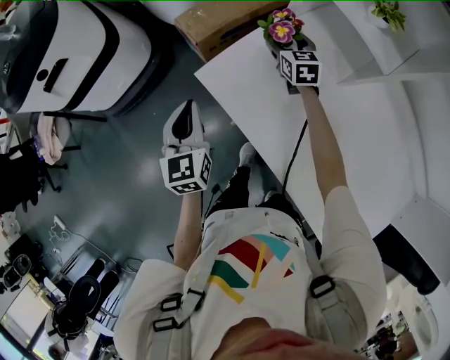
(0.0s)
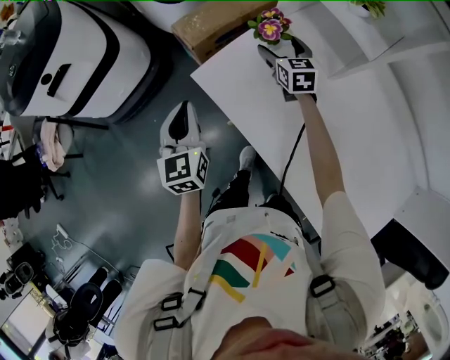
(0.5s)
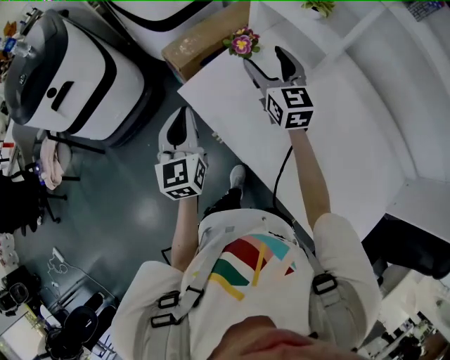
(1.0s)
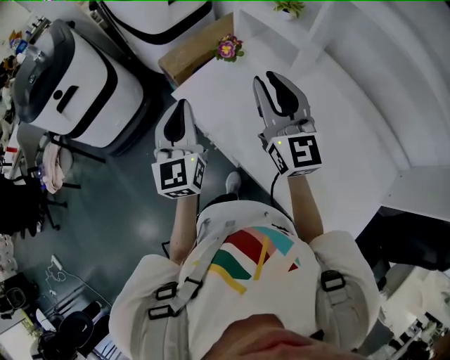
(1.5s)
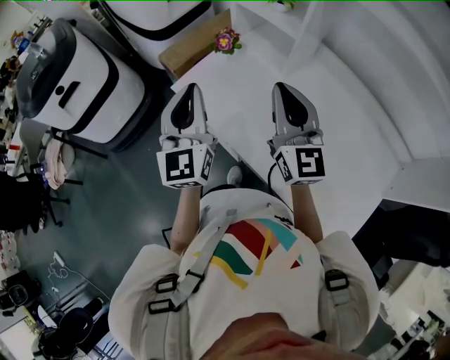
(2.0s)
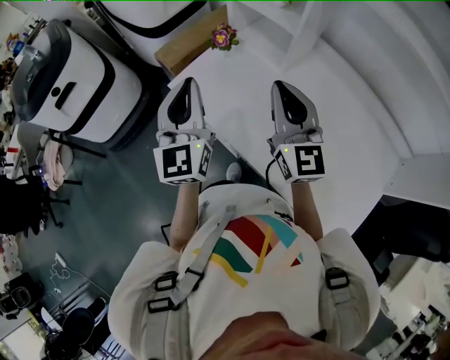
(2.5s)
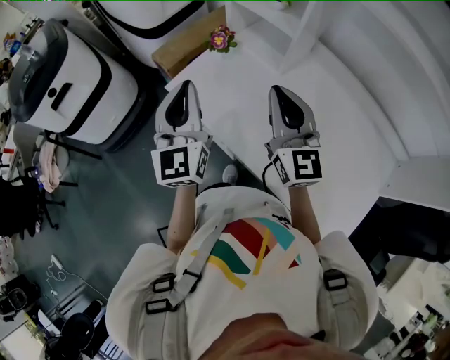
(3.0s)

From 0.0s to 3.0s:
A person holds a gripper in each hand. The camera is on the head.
From 0.0s to 1.5s: The left gripper heads upward, backward and to the right, covering approximately 20 cm, and swivels roughly 20 degrees. The right gripper heads upward and backward, covering approximately 40 cm, angles its fingers upward, by about 40 degrees, and closes.
From 1.5s to 3.0s: The right gripper shifts by about 5 cm.

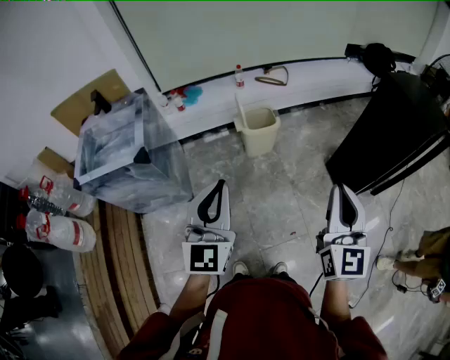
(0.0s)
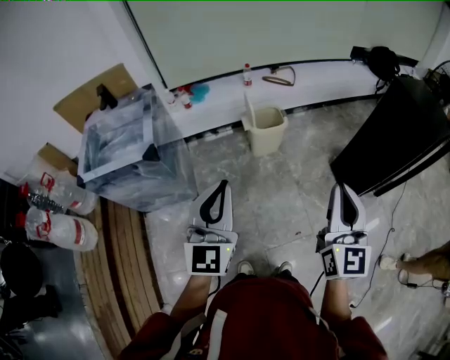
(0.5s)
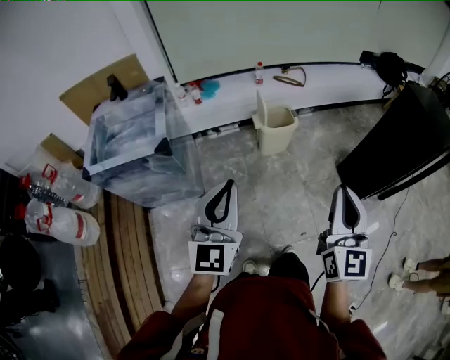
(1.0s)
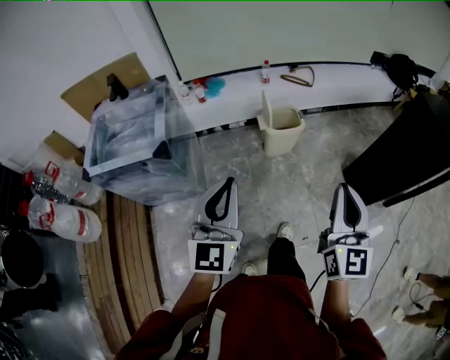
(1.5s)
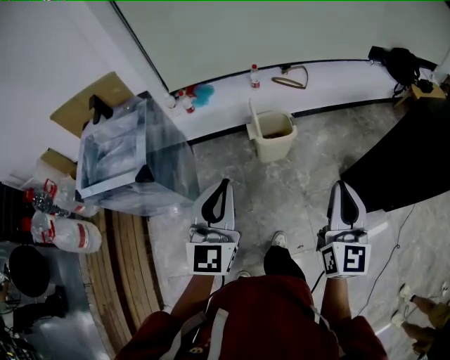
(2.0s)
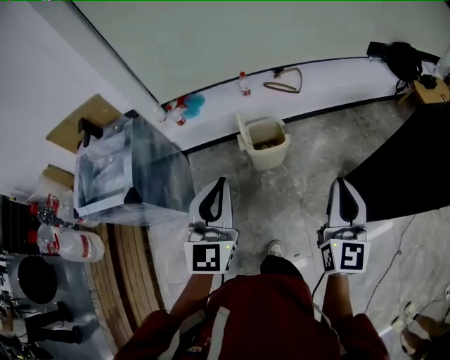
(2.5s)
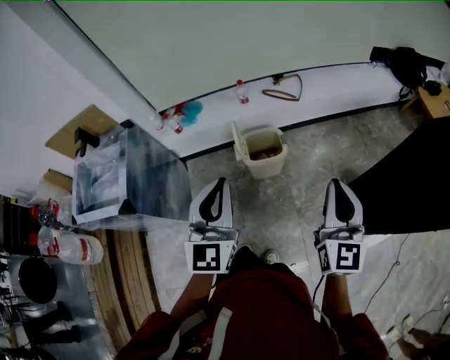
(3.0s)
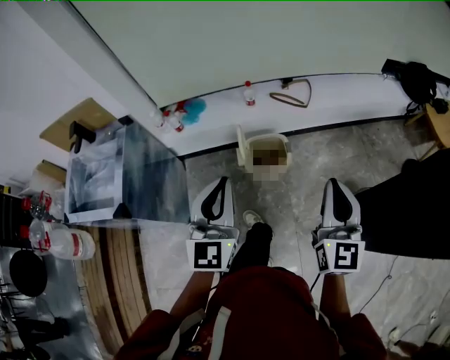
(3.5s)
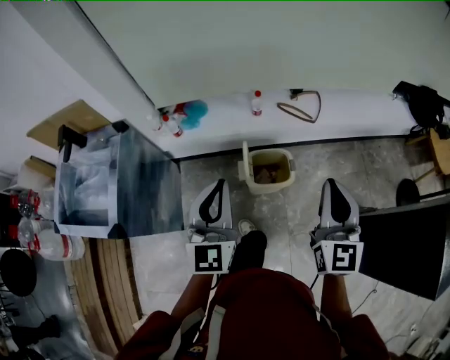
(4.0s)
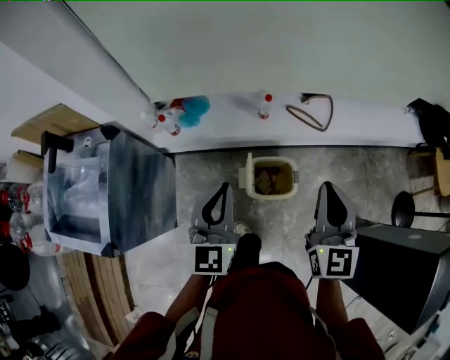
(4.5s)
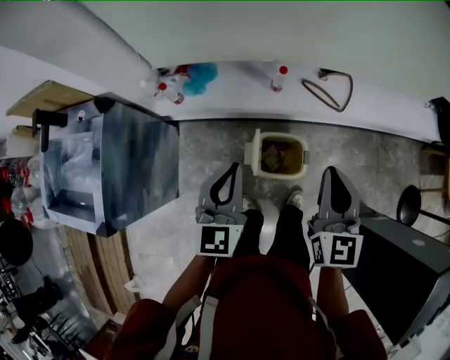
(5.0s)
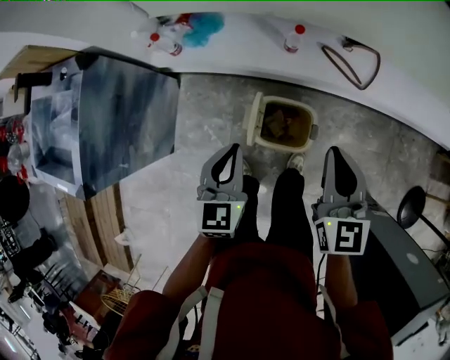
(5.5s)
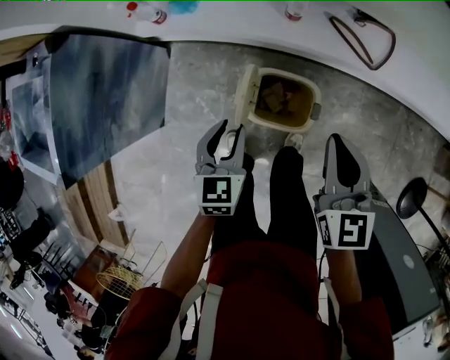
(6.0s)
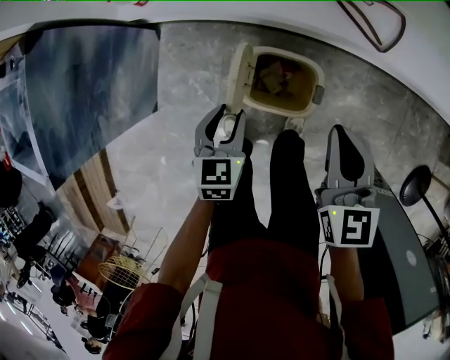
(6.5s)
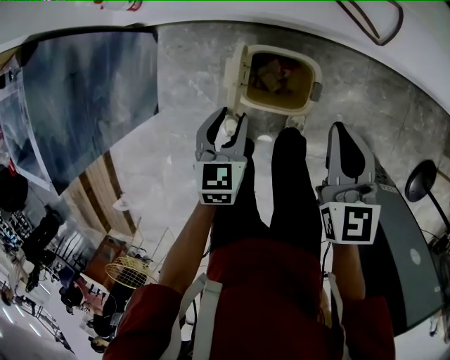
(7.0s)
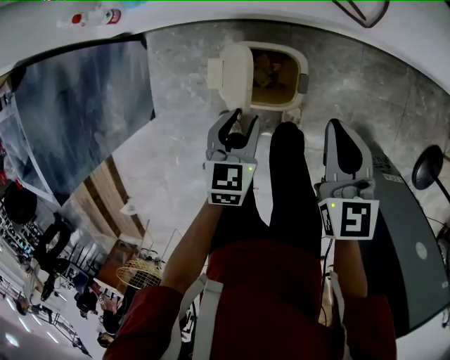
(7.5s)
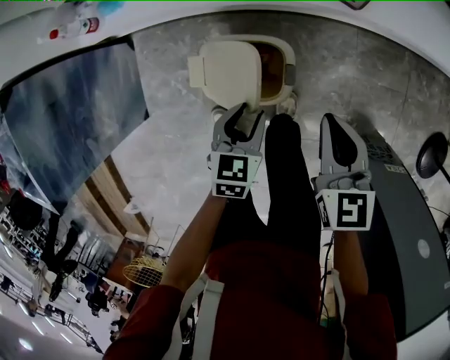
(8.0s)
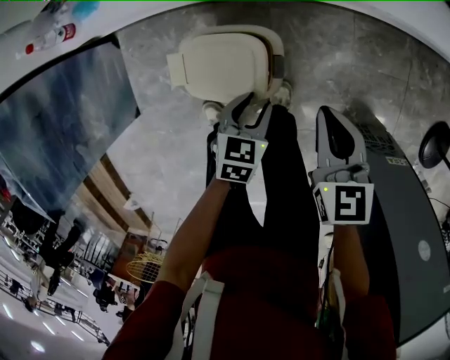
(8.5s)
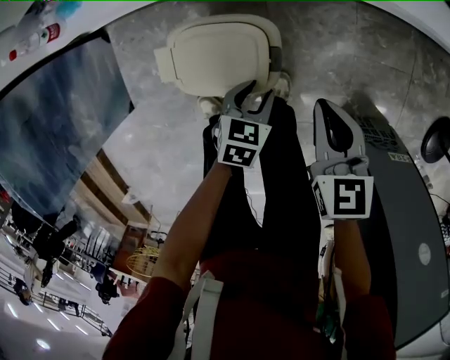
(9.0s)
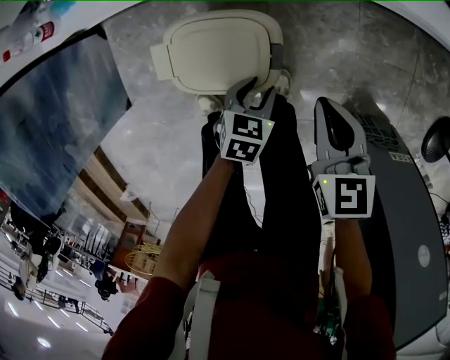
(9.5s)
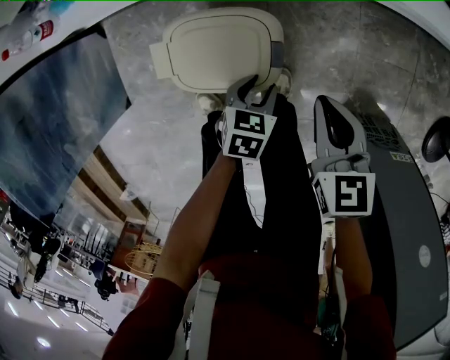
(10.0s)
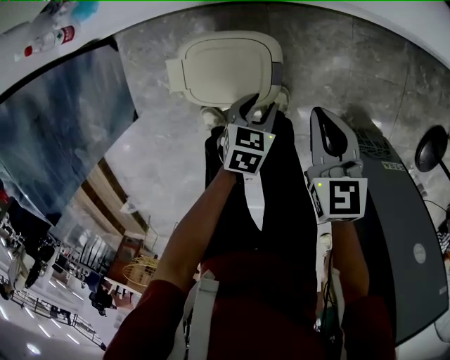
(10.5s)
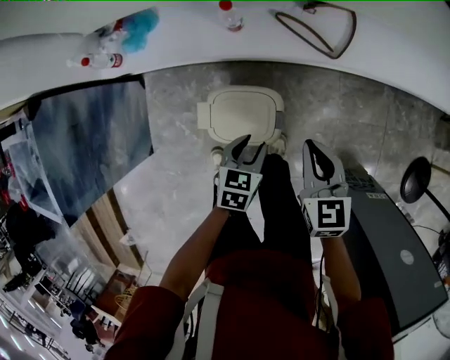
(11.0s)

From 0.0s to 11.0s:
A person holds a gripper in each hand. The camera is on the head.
From 0.0s to 2.0s: The grippers both shift forward by roughly 15 cm.
From 2.0s to 3.5s: The two grippers go about 20 cm forward.
From 3.5s to 5.5s: The right gripper goes about 40 cm forward and downward, and changes its angle by some 30 degrees; the left gripper heads downward and forward, covering about 35 cm, and turns by approximately 30 degrees.
From 5.5s to 7.5s: Both grippers move downward and to the right, about 20 cm. The left gripper turns by some 20 degrees, and opens up.
From 7.5s to 9.0s: The two grippers go approximately 20 cm downward and to the right. The left gripper swivels roughly 20 degrees.
From 9.0s to 11.0s: The grippers both shift upward by some 15 cm.

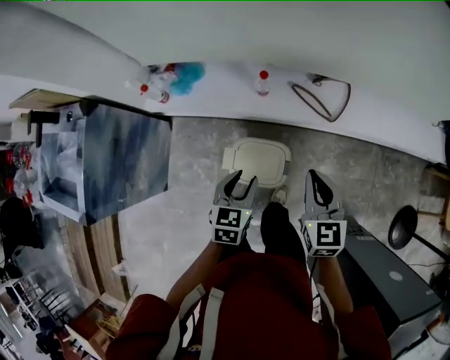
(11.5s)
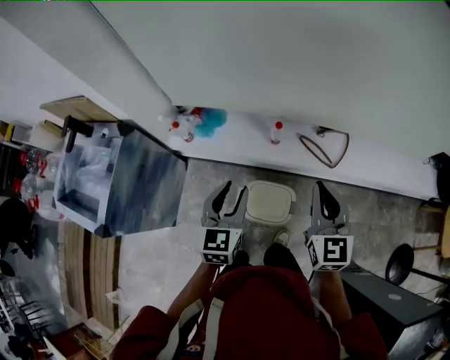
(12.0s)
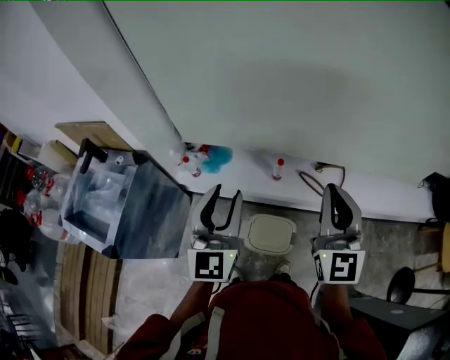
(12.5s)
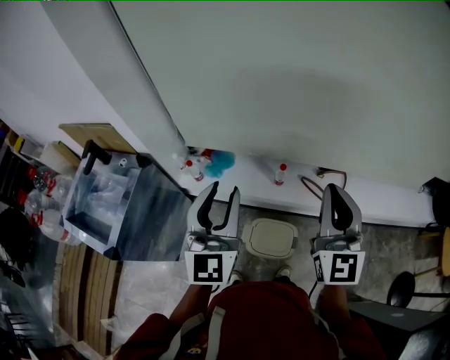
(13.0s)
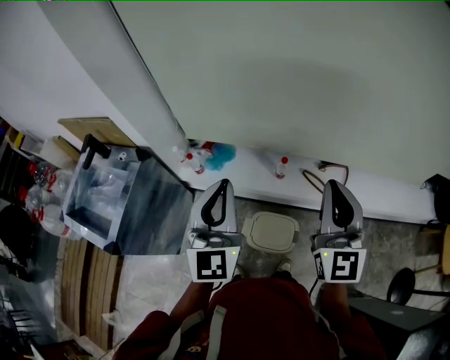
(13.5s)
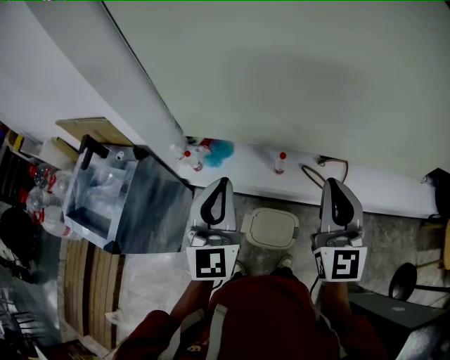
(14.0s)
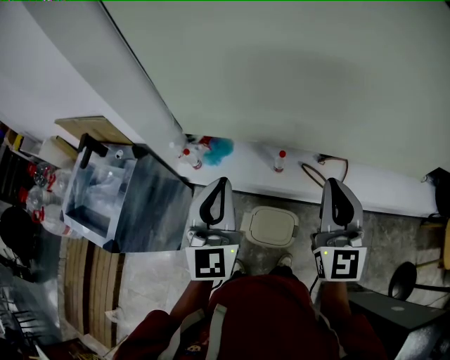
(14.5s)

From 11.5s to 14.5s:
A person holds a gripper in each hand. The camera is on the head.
From 11.5s to 13.0s: Both grippers move upward, roughly 35 cm. The right gripper tilts its fingers roughly 40 degrees upward. Meanwhile the left gripper points its fingers about 50 degrees further upward.
From 13.0s to 14.5s: The left gripper closes up.

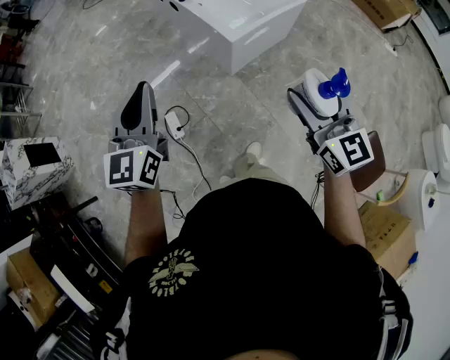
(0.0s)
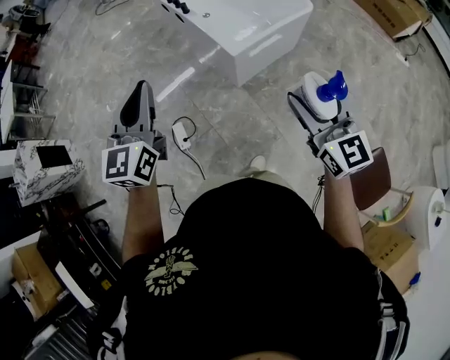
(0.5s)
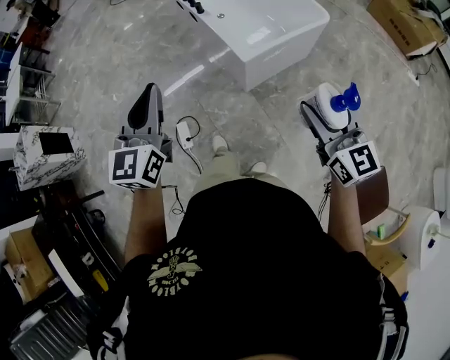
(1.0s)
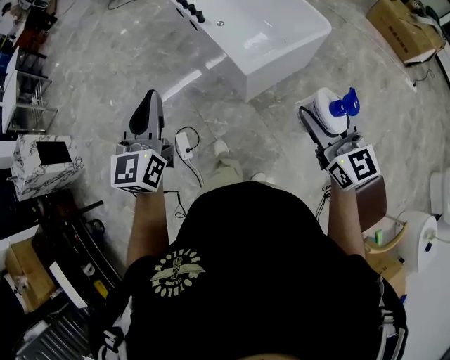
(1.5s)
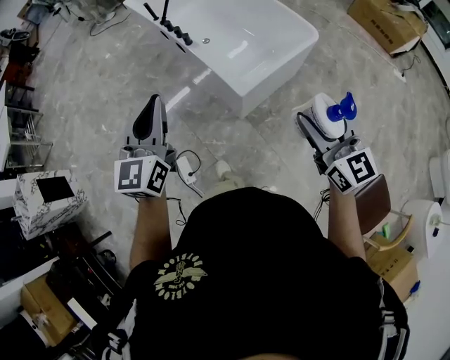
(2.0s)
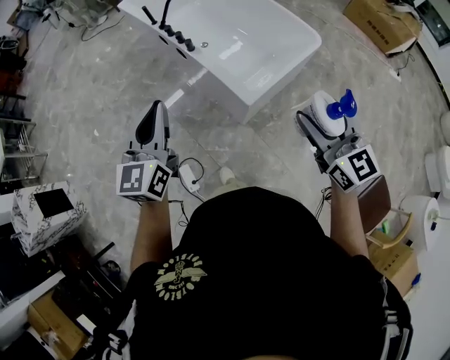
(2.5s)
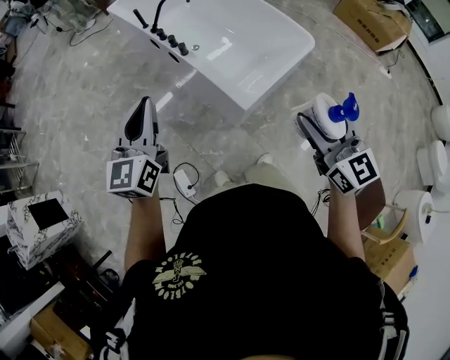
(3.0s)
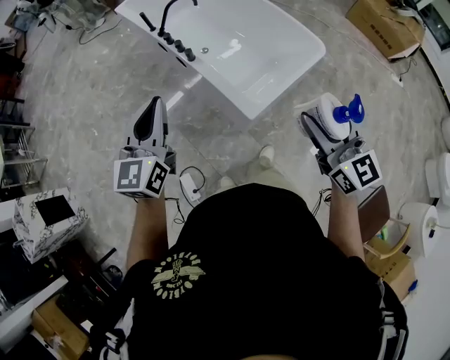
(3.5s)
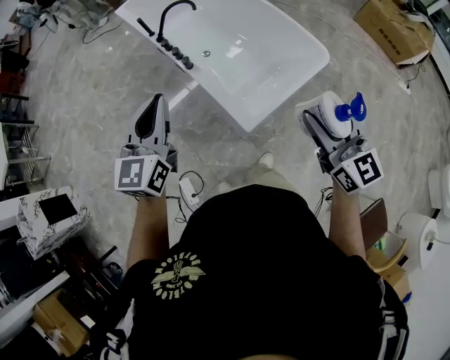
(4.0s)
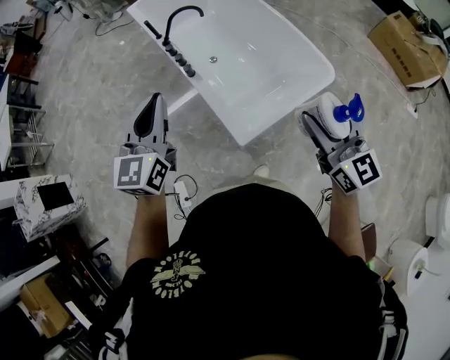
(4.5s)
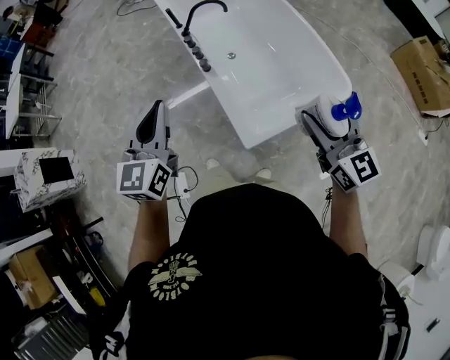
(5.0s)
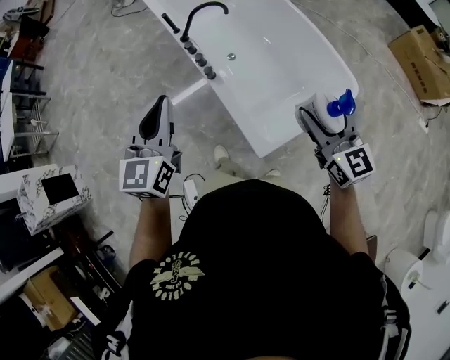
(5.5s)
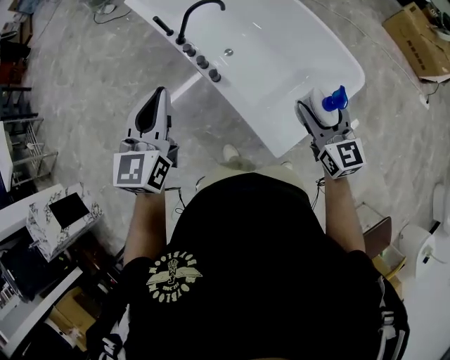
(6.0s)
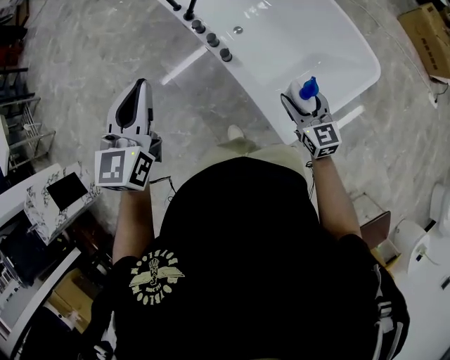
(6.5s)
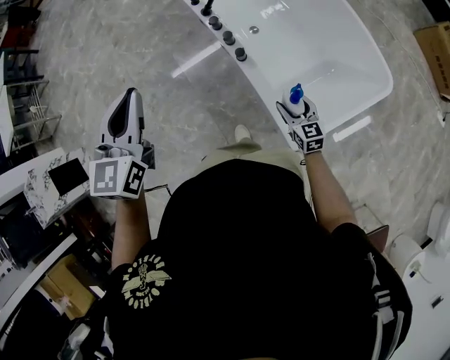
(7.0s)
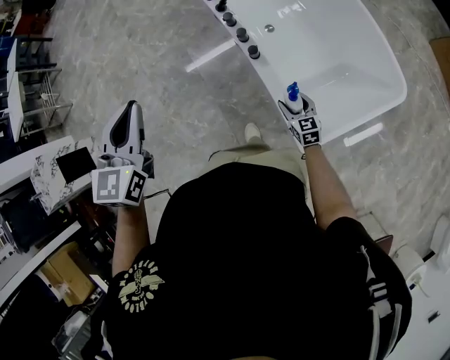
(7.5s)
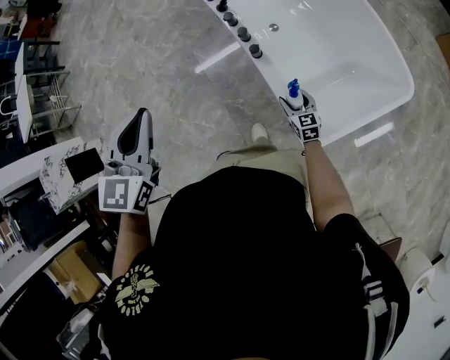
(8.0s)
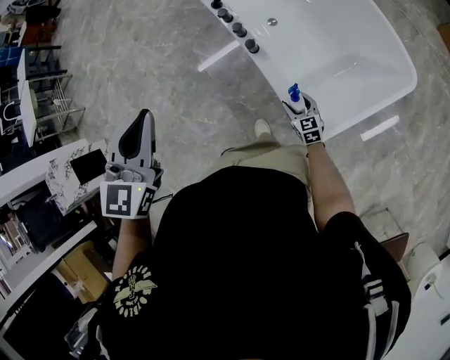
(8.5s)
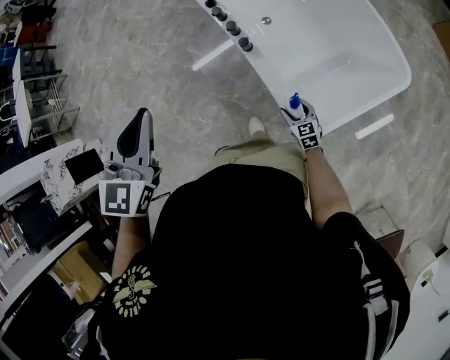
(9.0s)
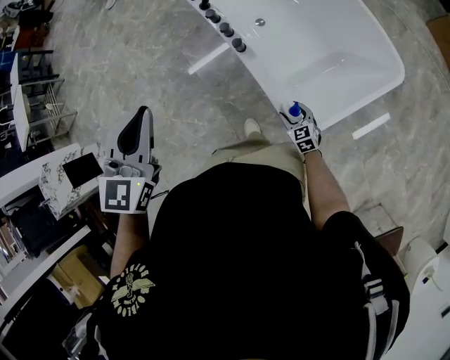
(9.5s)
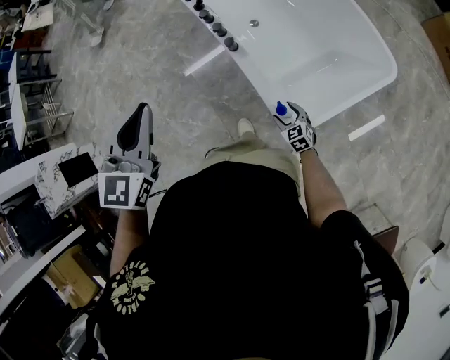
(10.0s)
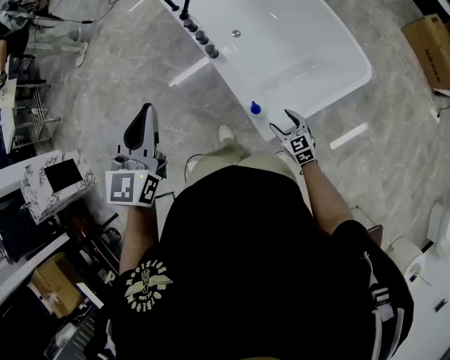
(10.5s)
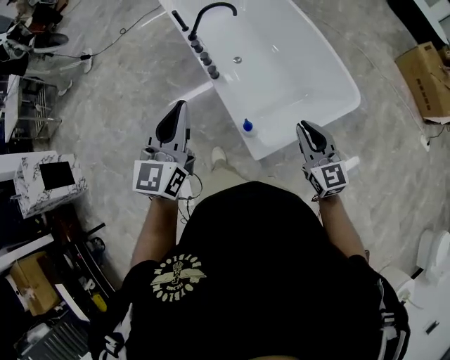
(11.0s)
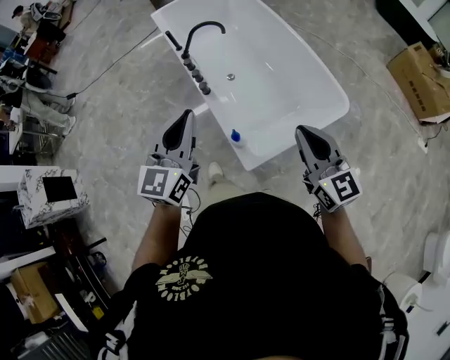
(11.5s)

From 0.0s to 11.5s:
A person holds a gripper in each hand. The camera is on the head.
From 0.0s to 2.0s: Both grippers move forward, approximately 20 cm.
From 2.0s to 4.0s: The grippers both shift forward by some 20 cm.
From 4.0s to 6.0s: The left gripper moves forward, some 25 cm, while the right gripper is displaced forward and downward by about 30 cm.
From 6.0s to 7.5s: The left gripper is displaced to the left by about 15 cm; the right gripper is displaced downward and to the left by about 35 cm, and turns by approximately 30 degrees.
From 7.5s to 9.5s: The right gripper heads backward and downward, covering roughly 10 cm. The left gripper is displaced to the right and backward by about 10 cm.
From 9.5s to 11.5s: The right gripper travels upward by roughly 50 cm, points its fingers about 40 degrees further upward, and closes, while the left gripper shifts about 25 cm to the right and backward, and rotates some 30 degrees.
